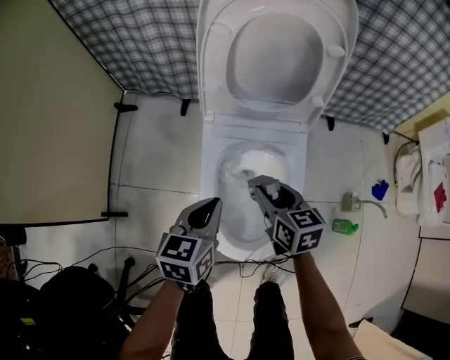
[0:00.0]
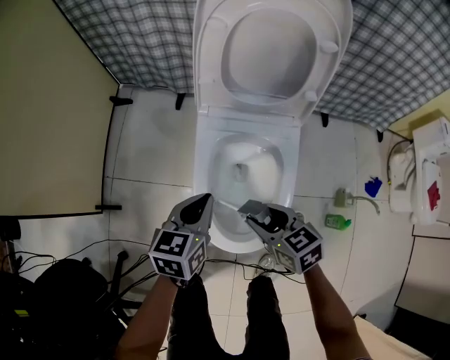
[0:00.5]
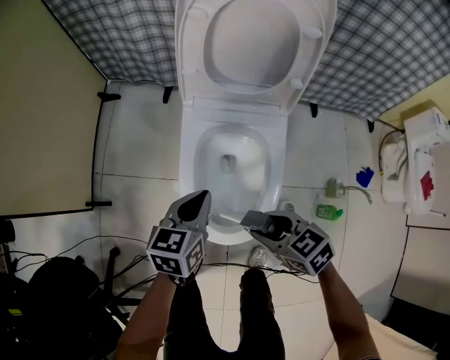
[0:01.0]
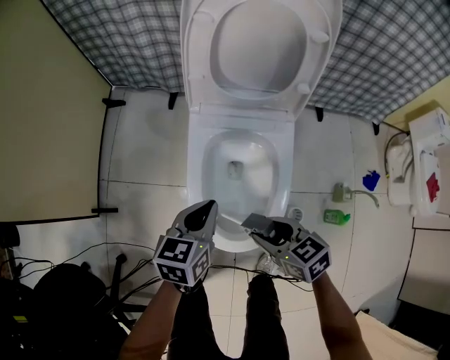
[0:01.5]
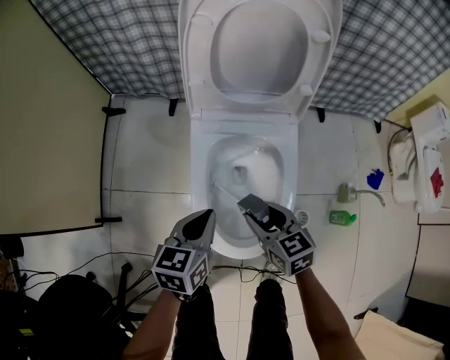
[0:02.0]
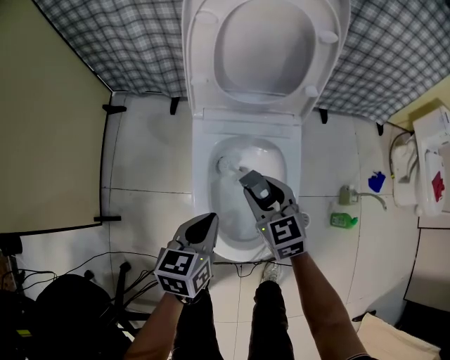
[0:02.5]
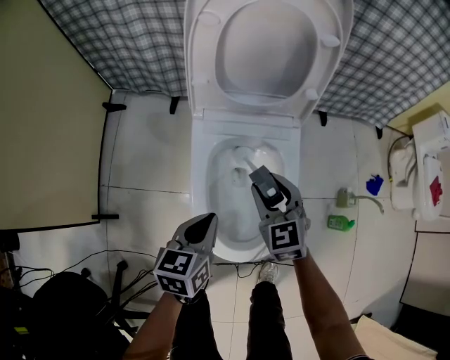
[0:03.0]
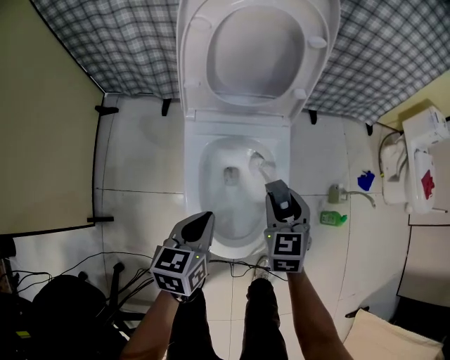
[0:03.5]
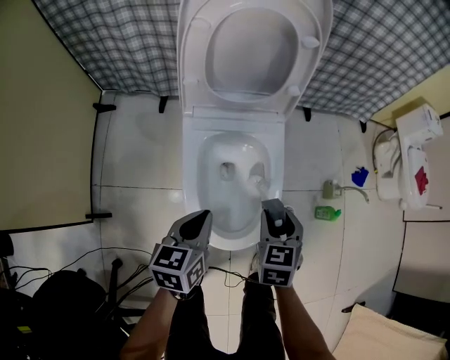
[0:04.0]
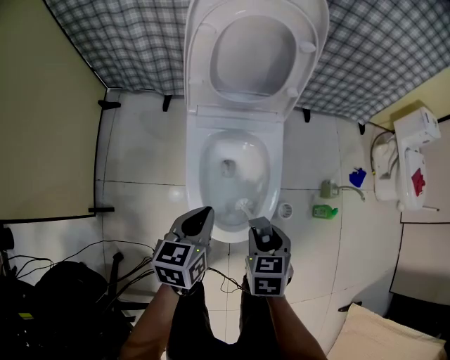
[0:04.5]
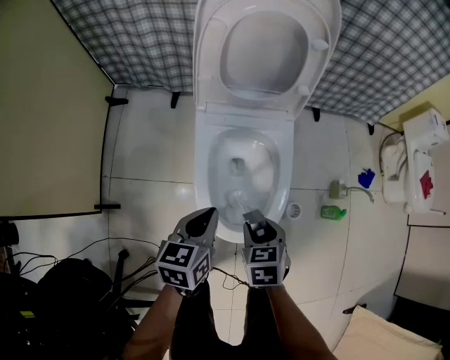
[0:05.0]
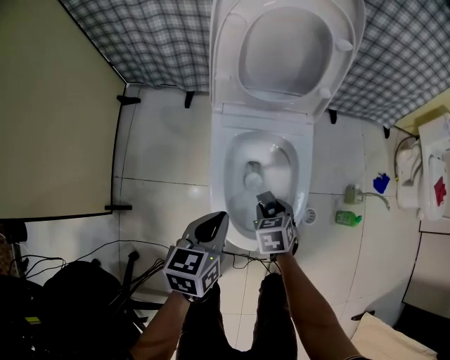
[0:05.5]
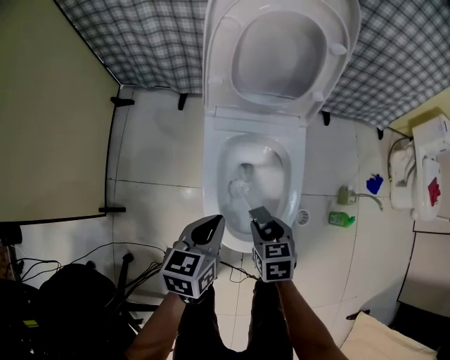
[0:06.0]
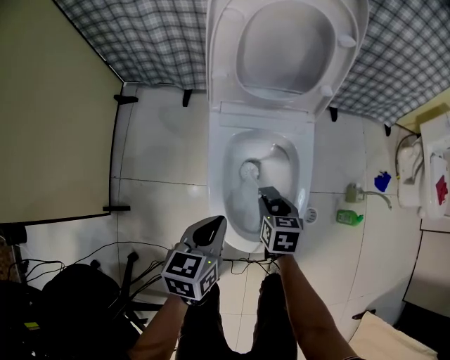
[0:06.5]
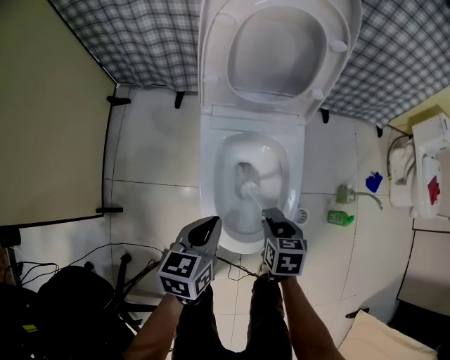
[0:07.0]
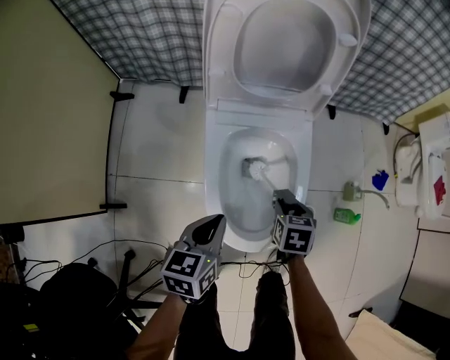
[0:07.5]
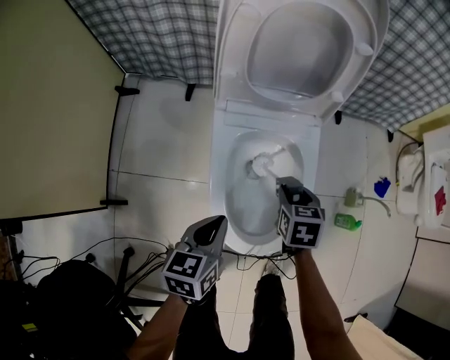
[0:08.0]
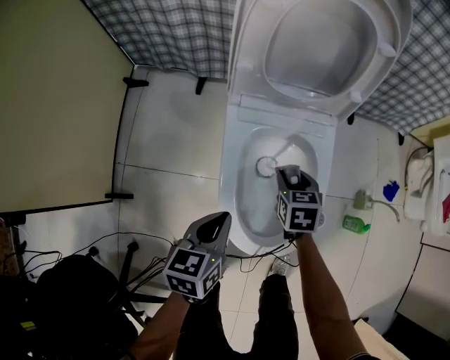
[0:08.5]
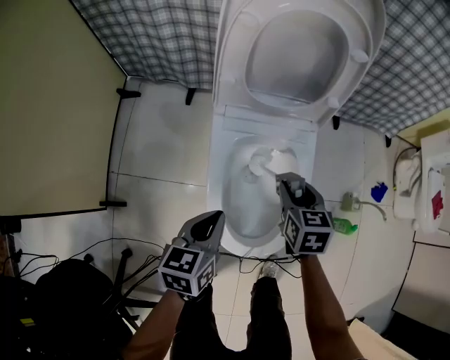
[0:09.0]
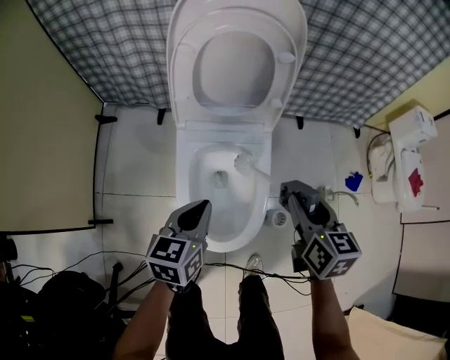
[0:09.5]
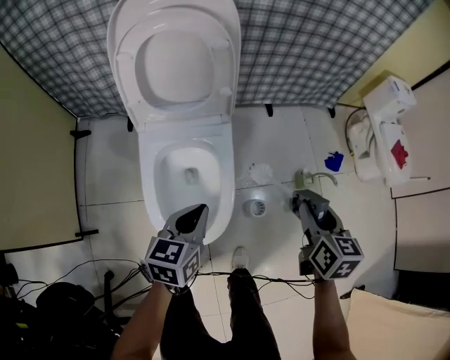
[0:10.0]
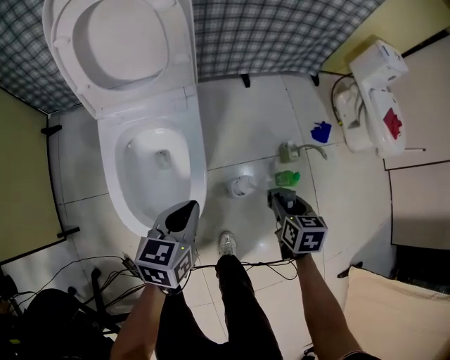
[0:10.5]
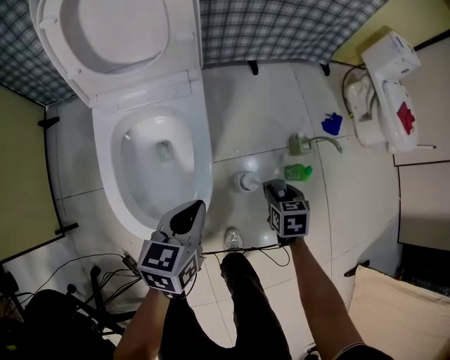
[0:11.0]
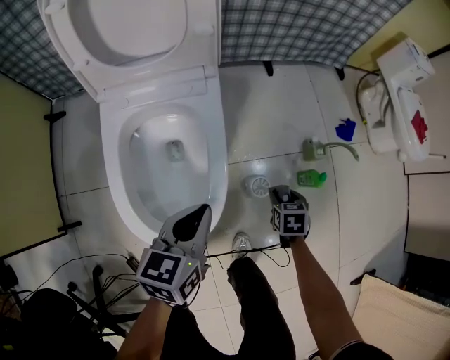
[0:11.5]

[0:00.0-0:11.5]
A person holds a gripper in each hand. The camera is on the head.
0:00.0 to 0:02.0: The right gripper shifts roughly 5 cm backward.
0:02.0 to 0:04.0: The right gripper shifts some 10 cm to the right, and rotates about 40 degrees.
0:04.0 to 0:06.0: The right gripper travels downward and to the left by roughly 10 cm, and turns by approximately 20 degrees.
0:06.0 to 0:07.5: The right gripper heads to the right and forward, covering approximately 10 cm.
0:07.5 to 0:09.5: The left gripper goes some 10 cm upward; the right gripper heads upward, covering about 25 cm, and rotates about 30 degrees.
0:09.5 to 0:11.5: The right gripper is displaced downward and to the right by about 40 cm, and points its fingers approximately 30 degrees further downward; the left gripper travels to the right and downward by about 20 cm.

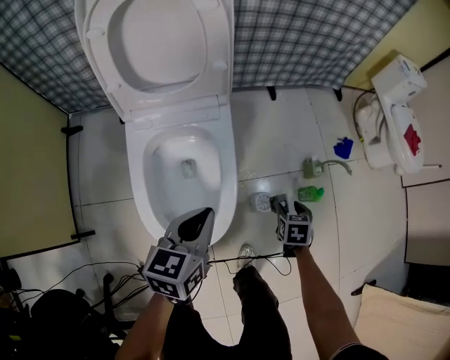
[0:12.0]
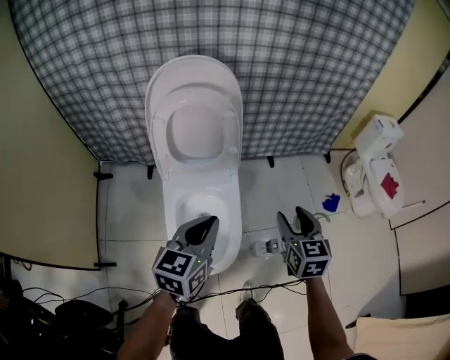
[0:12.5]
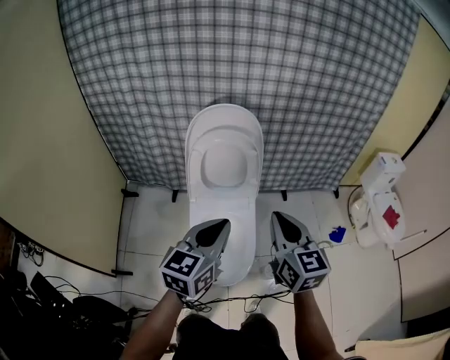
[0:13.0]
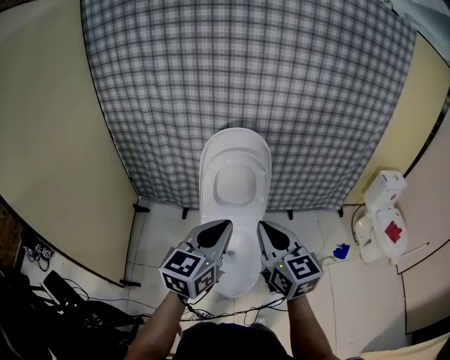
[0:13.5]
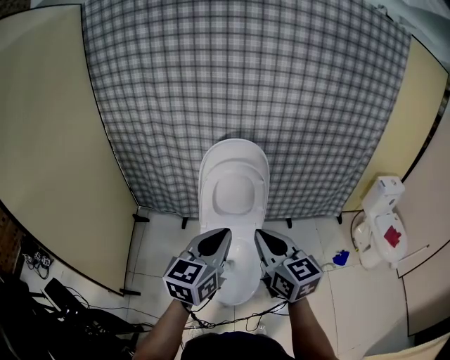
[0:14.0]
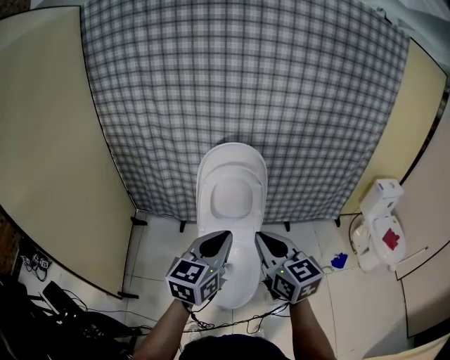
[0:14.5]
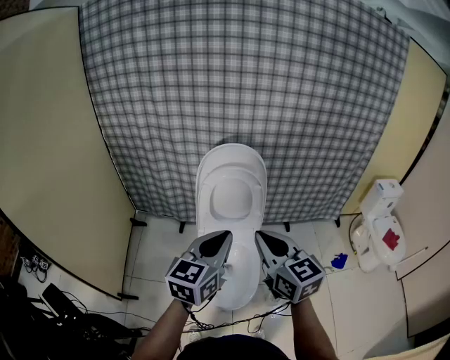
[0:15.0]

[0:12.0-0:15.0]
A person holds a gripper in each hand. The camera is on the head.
0:12.0 to 0:13.5: The grippers both shift upward by roughly 50 cm. The left gripper swivels about 30 degrees. Meanwhile the right gripper points its fingers roughly 60 degrees further upward, and closes.
0:13.5 to 0:15.0: The grippers stay close to where they were, moving slightly.

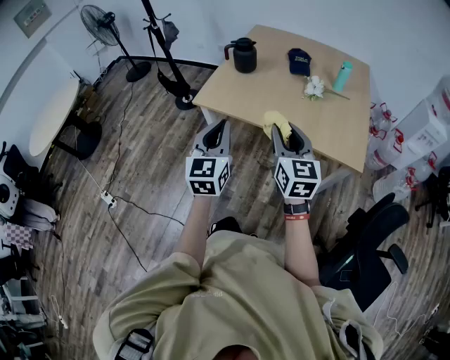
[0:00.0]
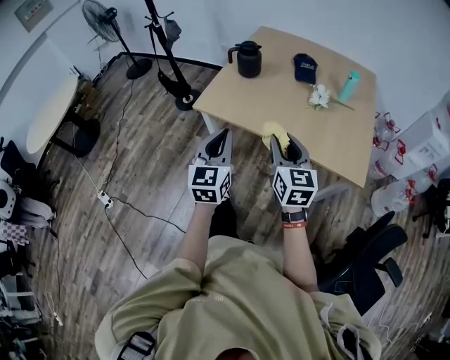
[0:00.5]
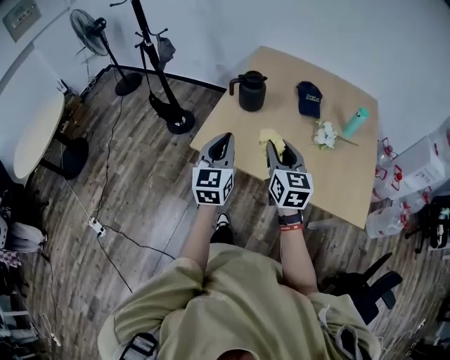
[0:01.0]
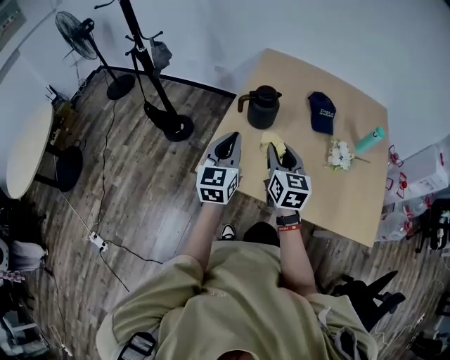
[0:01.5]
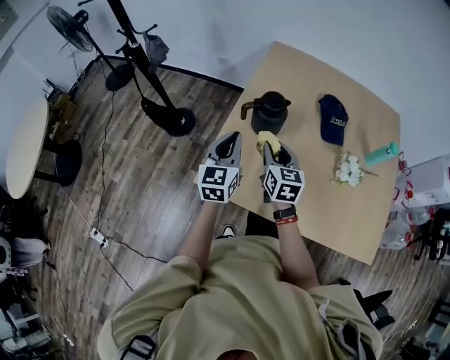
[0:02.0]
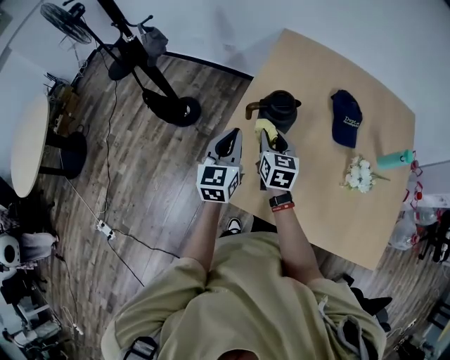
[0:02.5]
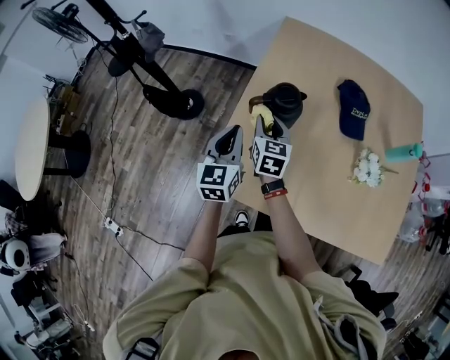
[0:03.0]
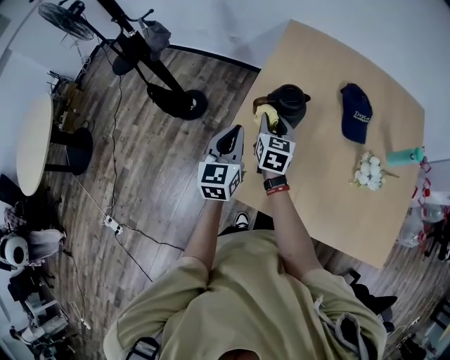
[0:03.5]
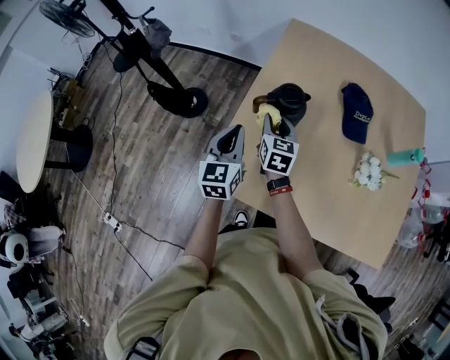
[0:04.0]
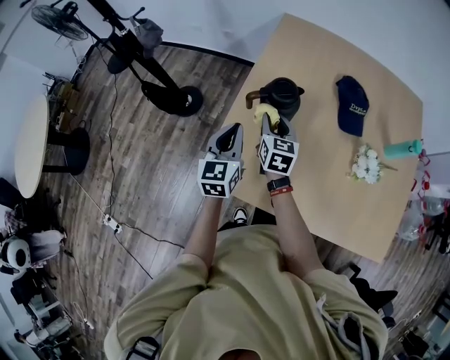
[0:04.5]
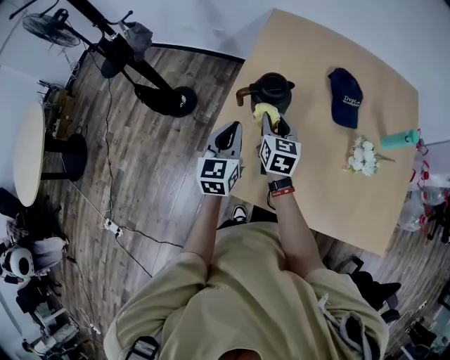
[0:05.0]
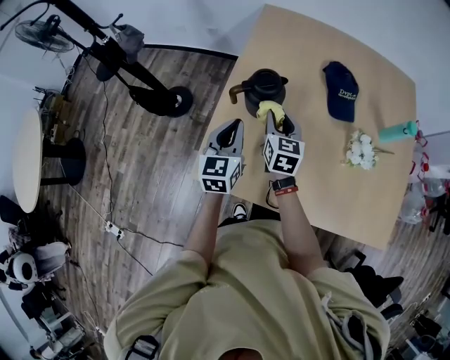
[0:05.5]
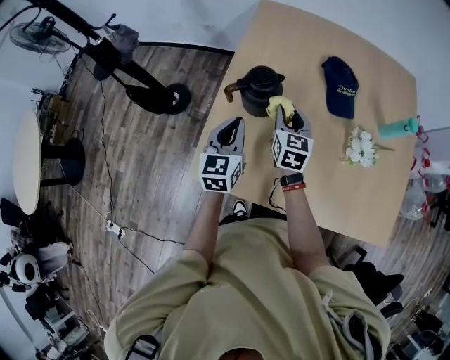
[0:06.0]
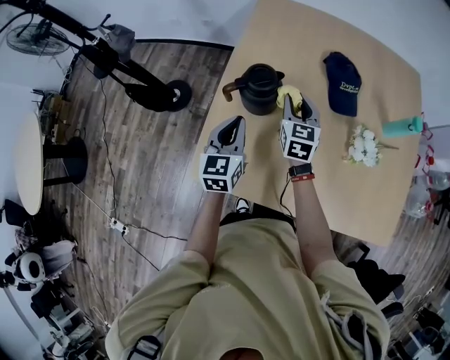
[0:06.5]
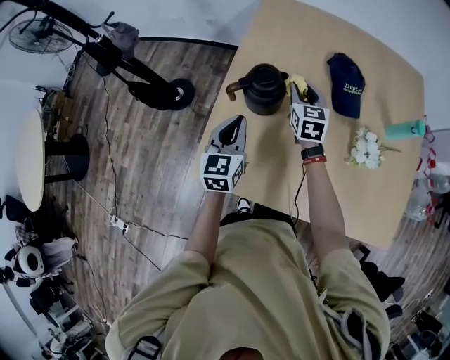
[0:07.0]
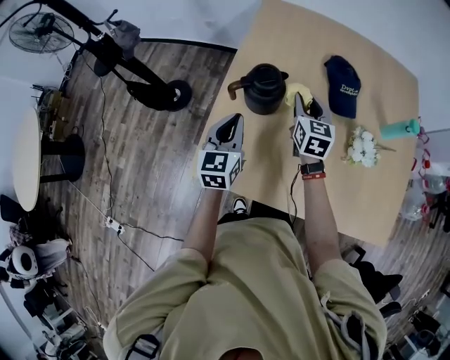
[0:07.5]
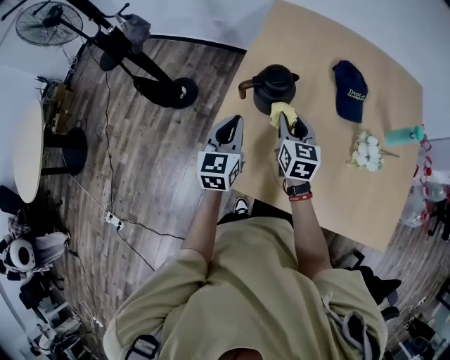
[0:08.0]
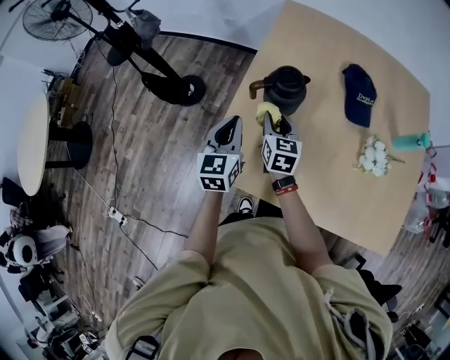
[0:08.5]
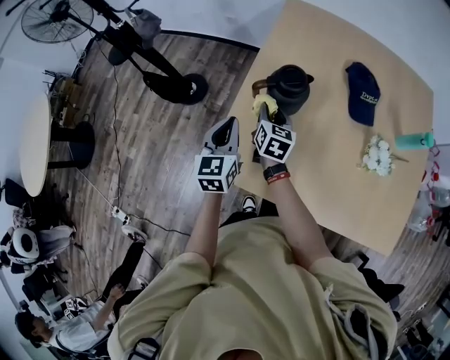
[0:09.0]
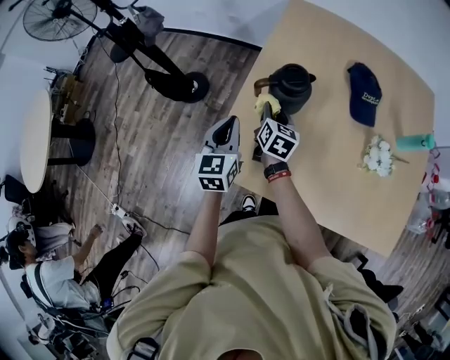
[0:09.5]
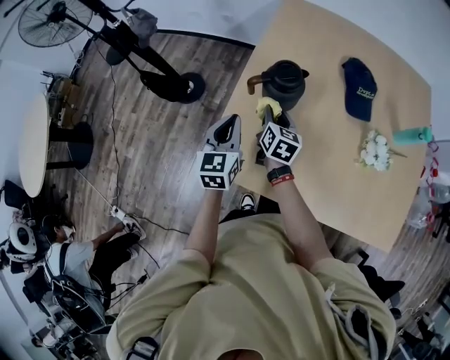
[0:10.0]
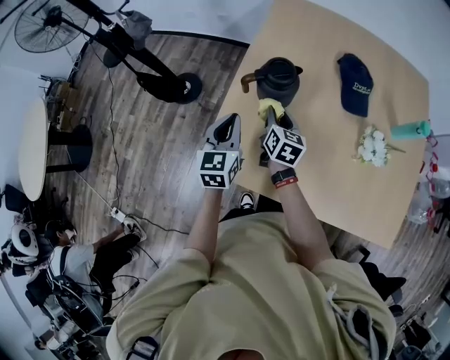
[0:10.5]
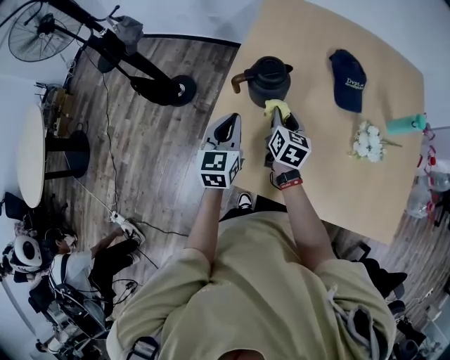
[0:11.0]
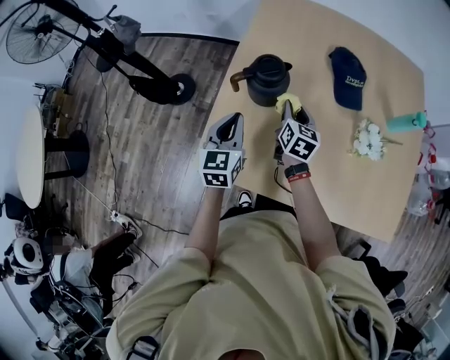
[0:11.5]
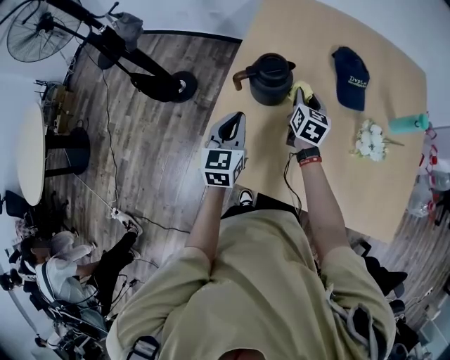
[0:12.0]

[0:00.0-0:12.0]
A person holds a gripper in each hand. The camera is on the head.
0:00.0 to 0:02.0: Both grippers are carried forward, roughly 60 cm.
0:02.0 to 0:04.0: The left gripper is displaced forward and downward by approximately 10 cm; the right gripper travels forward and downward by some 15 cm.
0:04.0 to 0:06.0: The left gripper travels to the right by some 10 cm; the right gripper travels to the right by about 10 cm.
0:06.0 to 0:08.0: The right gripper travels forward and back again, approximately 10 cm each way.
0:08.0 to 0:10.0: The right gripper shifts some 10 cm downward and to the left.
0:10.0 to 0:12.0: The right gripper goes about 15 cm to the right and forward. Meanwhile the left gripper shifts approximately 5 cm to the right.
